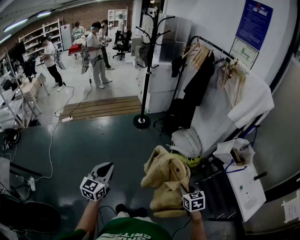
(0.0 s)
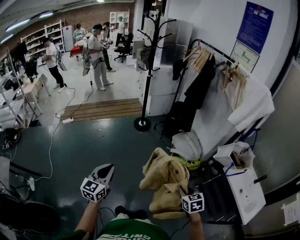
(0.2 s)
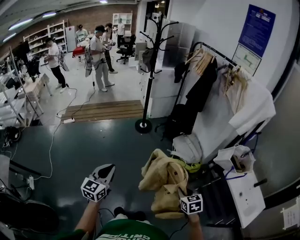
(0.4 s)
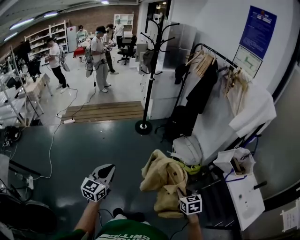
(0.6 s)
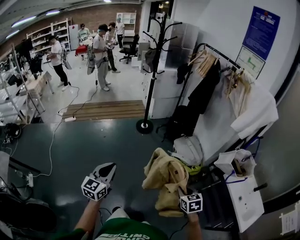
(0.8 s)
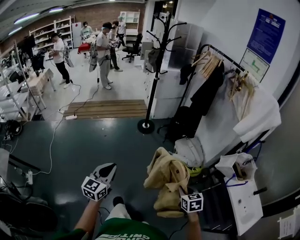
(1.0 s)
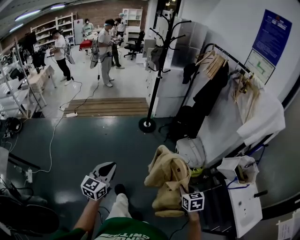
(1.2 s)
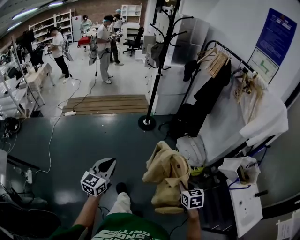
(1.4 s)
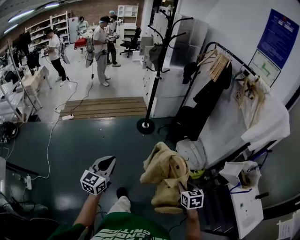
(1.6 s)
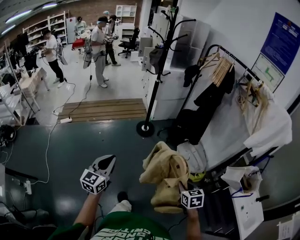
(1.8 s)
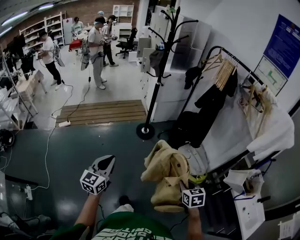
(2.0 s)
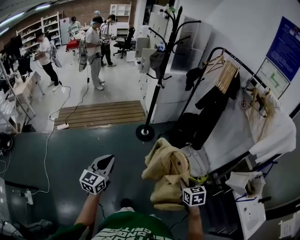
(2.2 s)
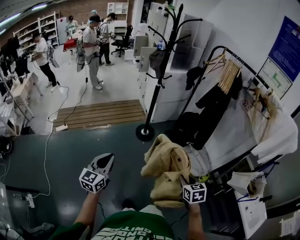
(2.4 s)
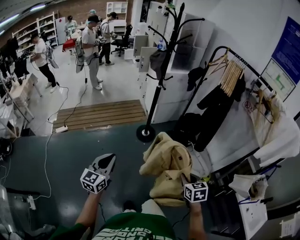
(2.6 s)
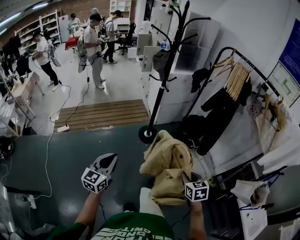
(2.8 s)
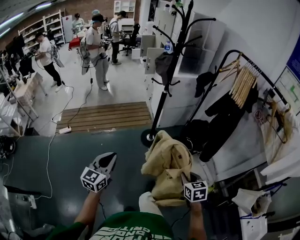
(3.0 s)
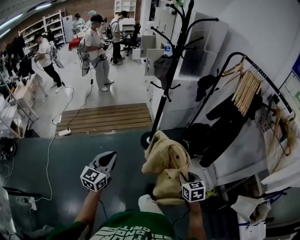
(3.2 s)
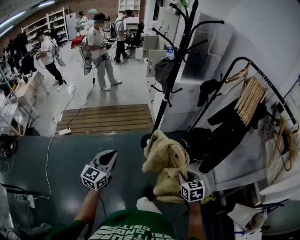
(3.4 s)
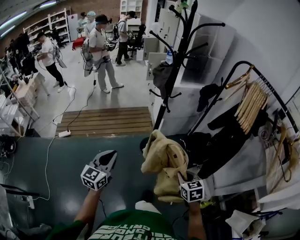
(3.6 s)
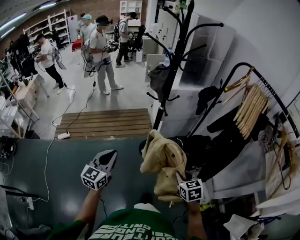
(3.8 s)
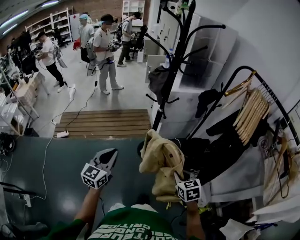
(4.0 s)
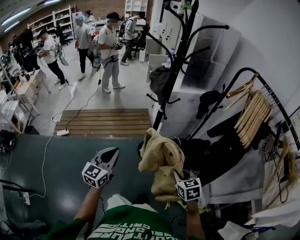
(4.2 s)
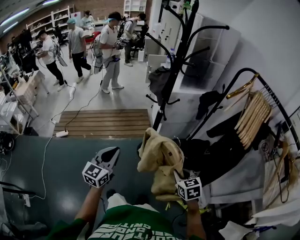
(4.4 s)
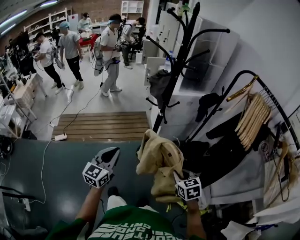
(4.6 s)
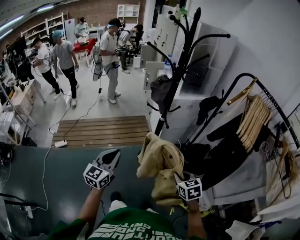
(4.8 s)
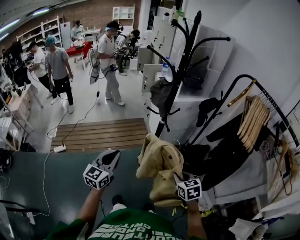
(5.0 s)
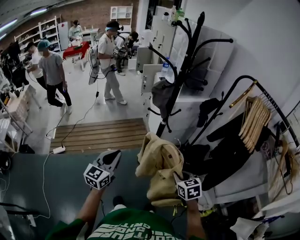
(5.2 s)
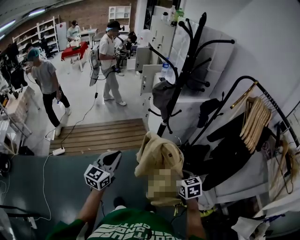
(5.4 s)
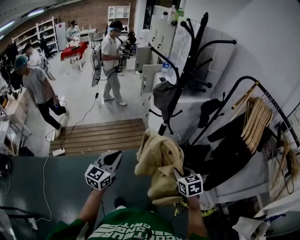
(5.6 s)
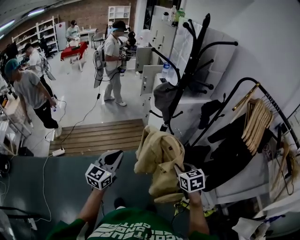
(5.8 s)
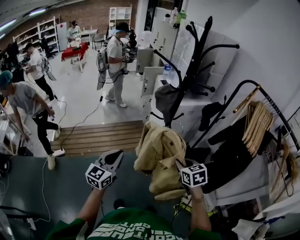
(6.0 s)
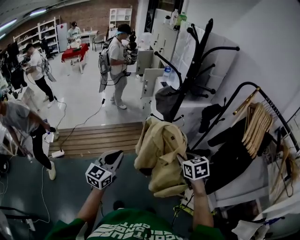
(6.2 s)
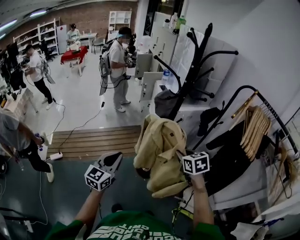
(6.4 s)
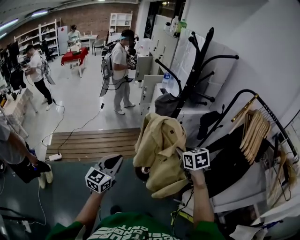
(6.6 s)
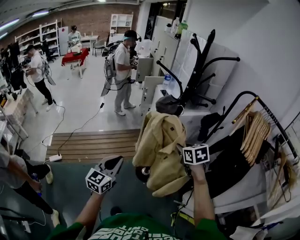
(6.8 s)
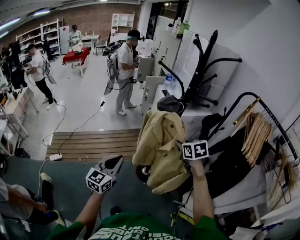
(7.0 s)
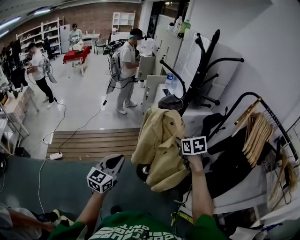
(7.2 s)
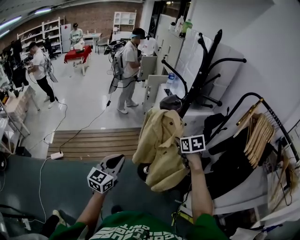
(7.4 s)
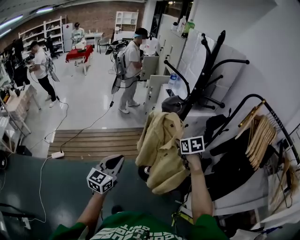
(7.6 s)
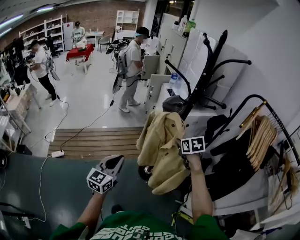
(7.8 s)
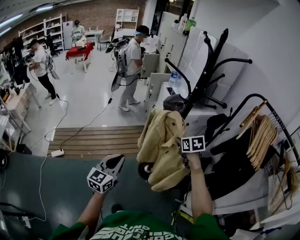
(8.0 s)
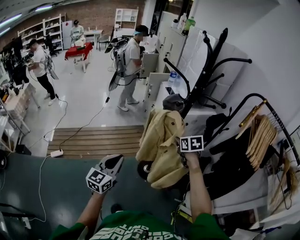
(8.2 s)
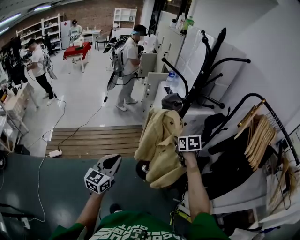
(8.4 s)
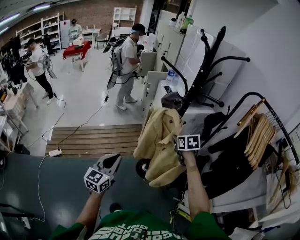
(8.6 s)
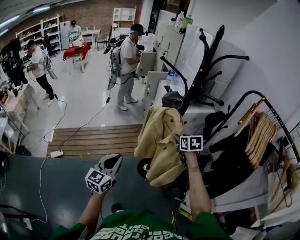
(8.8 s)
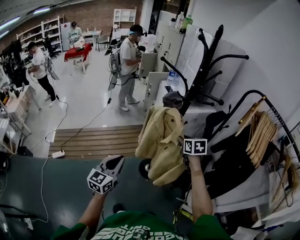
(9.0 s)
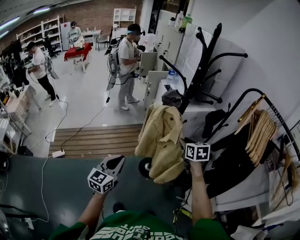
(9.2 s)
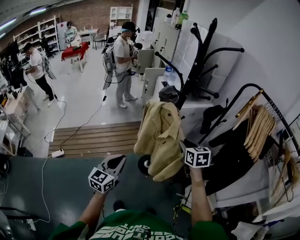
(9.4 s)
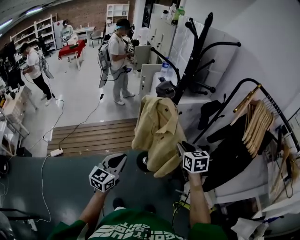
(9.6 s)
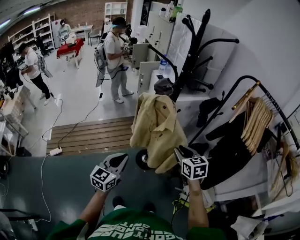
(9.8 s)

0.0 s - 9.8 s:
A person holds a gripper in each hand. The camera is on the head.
0.0 s - 1.4 s: Both grippers travel together forward, some 10 cm.
1.4 s - 2.8 s: The two grippers go some 35 cm forward and to the left.
2.8 s - 4.2 s: Both grippers move forward, about 30 cm.
4.2 s - 5.6 s: The left gripper is displaced forward and to the left by approximately 15 cm. Meanwhile the right gripper shifts approximately 15 cm to the left and forward.
5.6 s - 7.0 s: The right gripper is displaced forward and upward by about 20 cm.
7.0 s - 8.4 s: The right gripper is displaced forward and downward by about 10 cm.
8.4 s - 9.8 s: The left gripper heads to the right, covering about 10 cm. The right gripper goes about 15 cm backward.

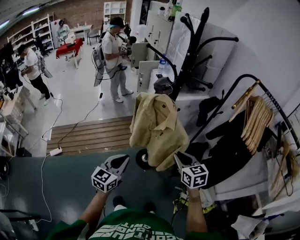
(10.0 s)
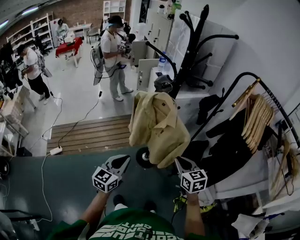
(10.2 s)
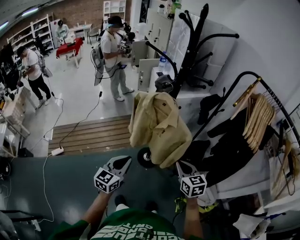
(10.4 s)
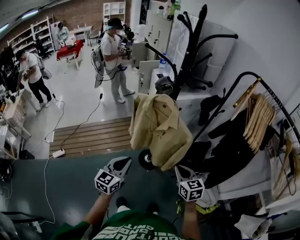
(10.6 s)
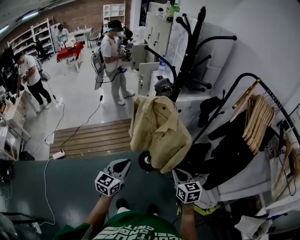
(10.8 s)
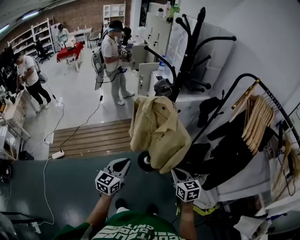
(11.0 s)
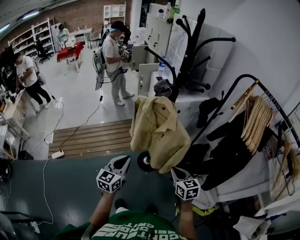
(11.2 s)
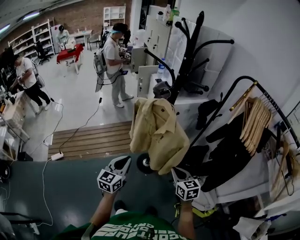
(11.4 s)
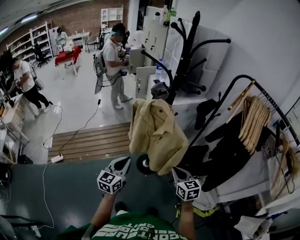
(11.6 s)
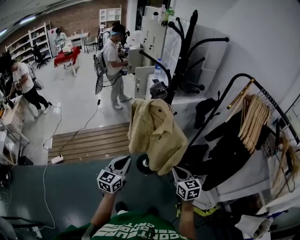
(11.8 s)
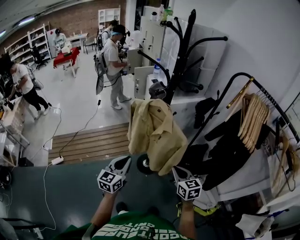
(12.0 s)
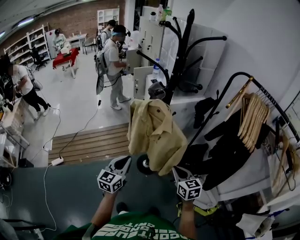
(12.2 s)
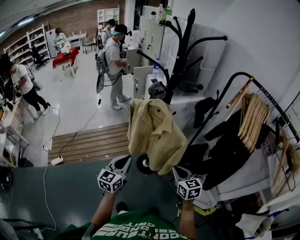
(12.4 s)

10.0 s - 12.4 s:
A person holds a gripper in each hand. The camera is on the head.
10.0 s - 11.2 s: The right gripper heads downward, covering roughly 5 cm.
11.2 s - 12.4 s: The grippers move only a little.

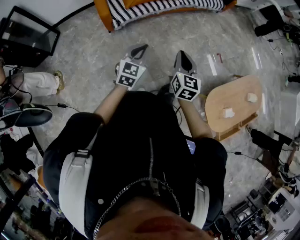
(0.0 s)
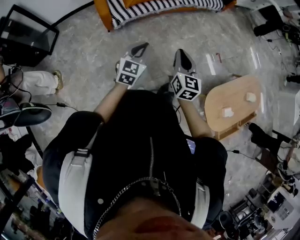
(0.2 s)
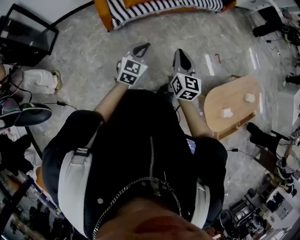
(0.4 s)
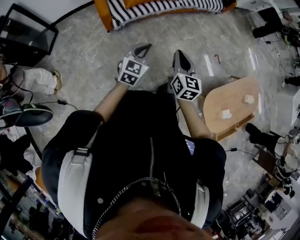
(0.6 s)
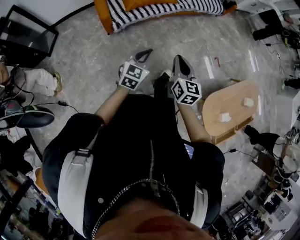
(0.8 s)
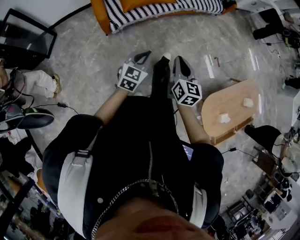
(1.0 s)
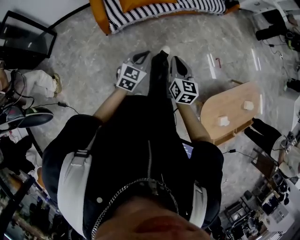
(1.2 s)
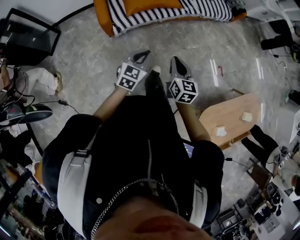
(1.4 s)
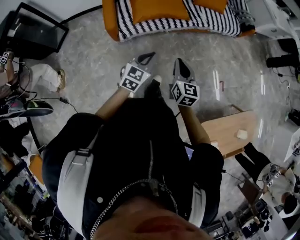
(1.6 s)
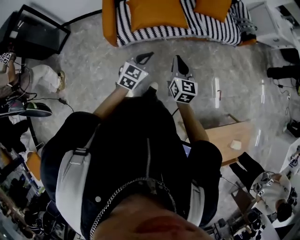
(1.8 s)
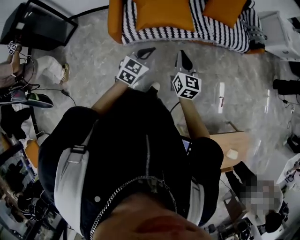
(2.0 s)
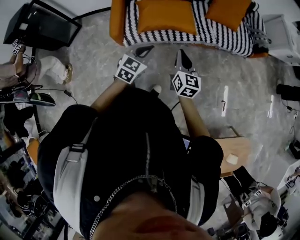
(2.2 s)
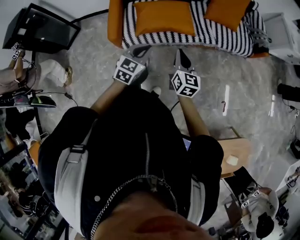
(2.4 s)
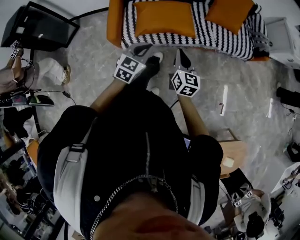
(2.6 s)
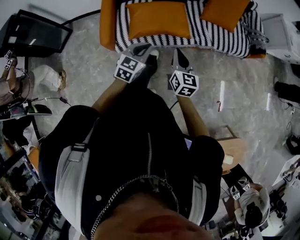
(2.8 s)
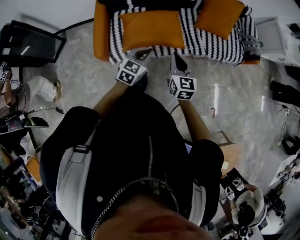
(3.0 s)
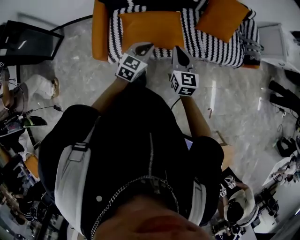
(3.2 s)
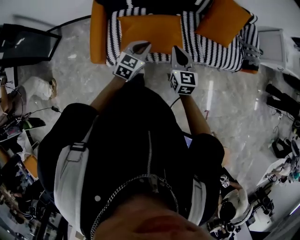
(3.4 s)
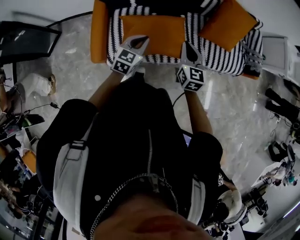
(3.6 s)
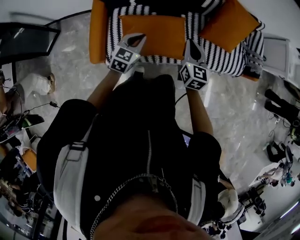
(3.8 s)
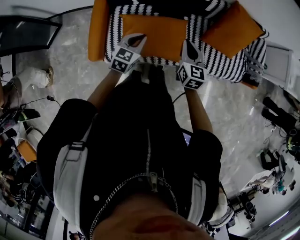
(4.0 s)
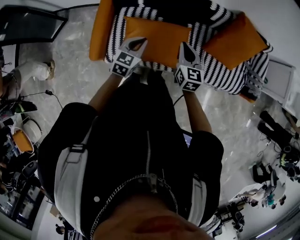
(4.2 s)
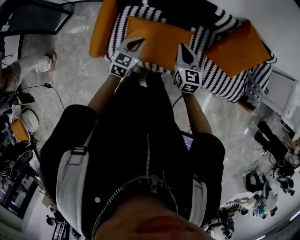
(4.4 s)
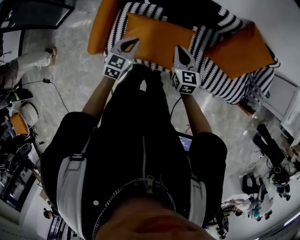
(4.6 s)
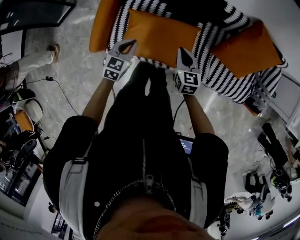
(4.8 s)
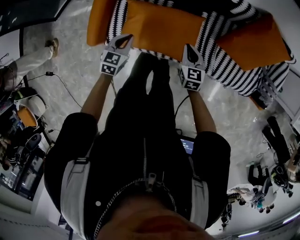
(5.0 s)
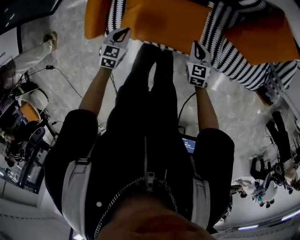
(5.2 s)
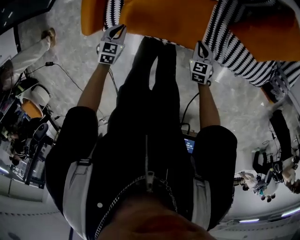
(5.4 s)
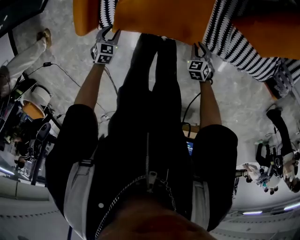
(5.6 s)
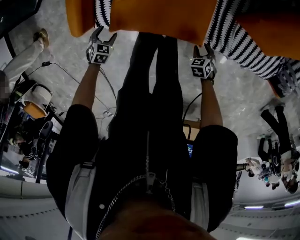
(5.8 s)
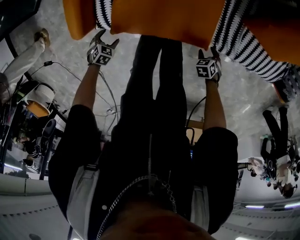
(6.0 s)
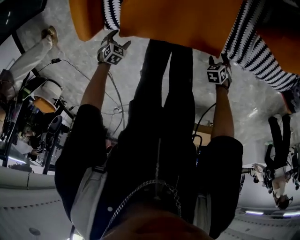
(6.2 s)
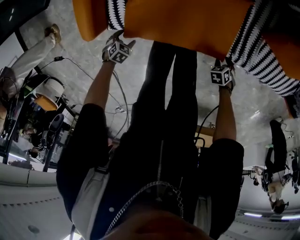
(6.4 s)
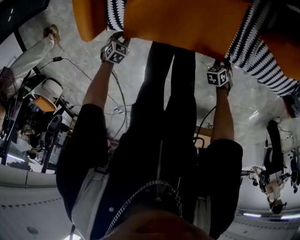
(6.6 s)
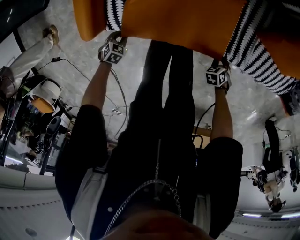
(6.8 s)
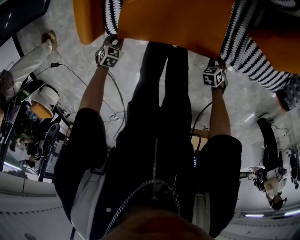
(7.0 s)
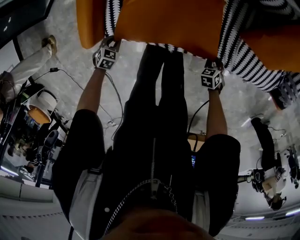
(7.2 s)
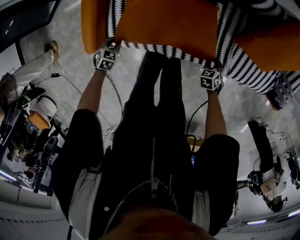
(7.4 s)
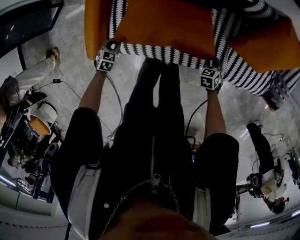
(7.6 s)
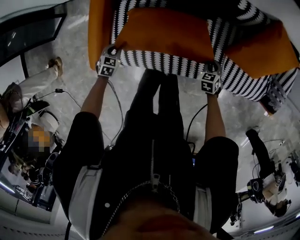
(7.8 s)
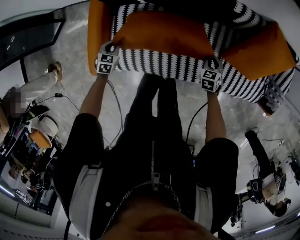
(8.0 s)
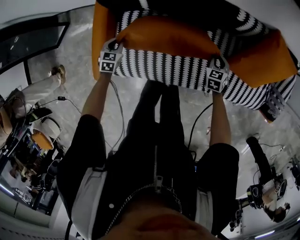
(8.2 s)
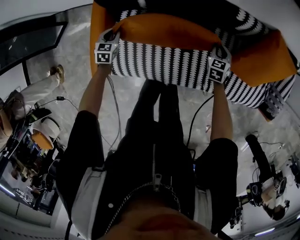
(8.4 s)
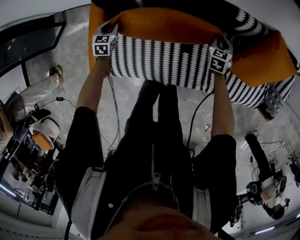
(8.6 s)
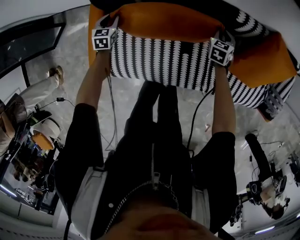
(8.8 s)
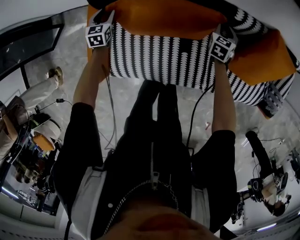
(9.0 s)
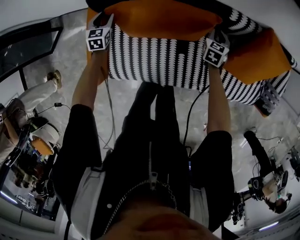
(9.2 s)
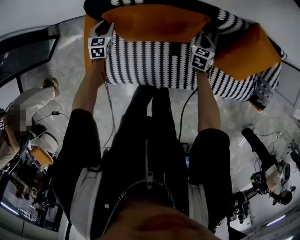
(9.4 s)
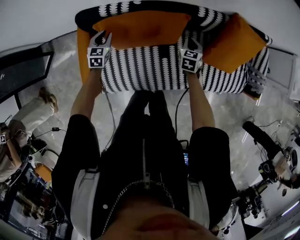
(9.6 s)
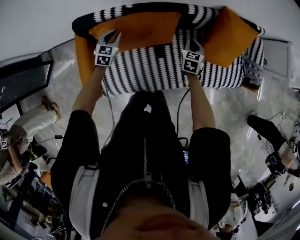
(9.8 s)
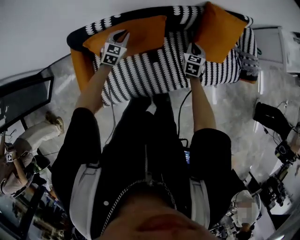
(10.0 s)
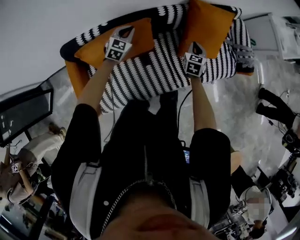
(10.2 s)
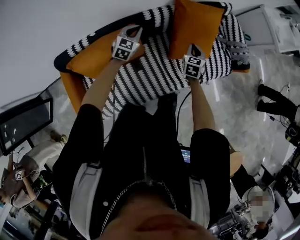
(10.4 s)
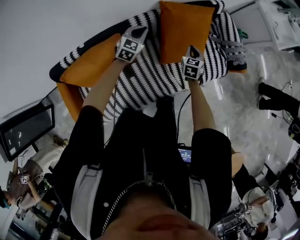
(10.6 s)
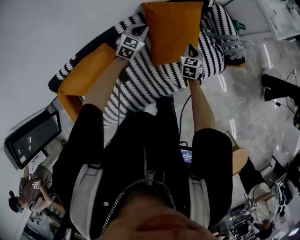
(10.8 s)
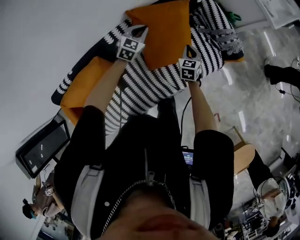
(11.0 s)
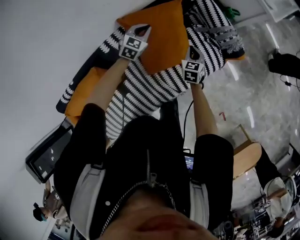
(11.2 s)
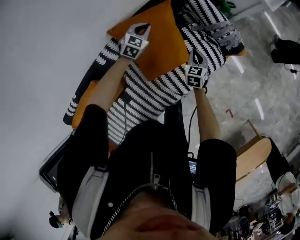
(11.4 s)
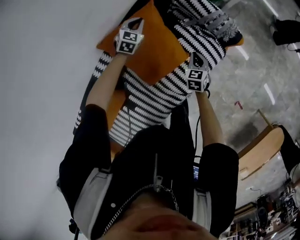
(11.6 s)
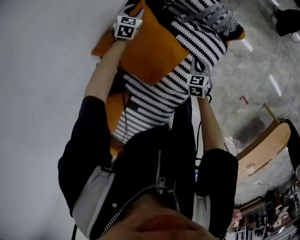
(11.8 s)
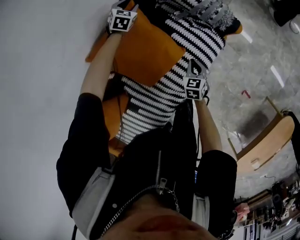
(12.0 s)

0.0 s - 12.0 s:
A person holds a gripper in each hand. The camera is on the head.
0.0 s - 1.6 s: Both grippers move forward, approximately 20 cm.
1.6 s - 3.0 s: The grippers both shift forward by some 30 cm.
3.0 s - 4.4 s: The grippers both shift forward by some 25 cm. The left gripper changes its angle by some 20 degrees.
4.4 s - 6.0 s: The grippers both shift downward by roughly 40 cm. The left gripper tips its fingers downward by some 50 degrees, and opens its fingers. Meanwhile the right gripper angles its fingers downward, by roughly 60 degrees, and opens.
6.0 s - 7.6 s: The left gripper shifts by approximately 20 cm, and closes up. The right gripper changes place by approximately 20 cm, rotates about 20 degrees, and closes its fingers.
7.6 s - 9.0 s: The grippers both shift forward by roughly 30 cm. The left gripper changes its angle by about 30 degrees, and opens up. Meanwhile the right gripper changes its angle by about 30 degrees.
9.0 s - 10.4 s: The two grippers travel together, about 50 cm. The right gripper rotates roughly 20 degrees, and closes its fingers, while the left gripper changes its angle by approximately 50 degrees, and closes its fingers.
10.4 s - 12.0 s: The right gripper travels to the right, downward and forward by approximately 40 cm, and rotates about 30 degrees. Meanwhile the left gripper shifts some 70 cm forward and to the right, swivels about 40 degrees, and opens its fingers.
